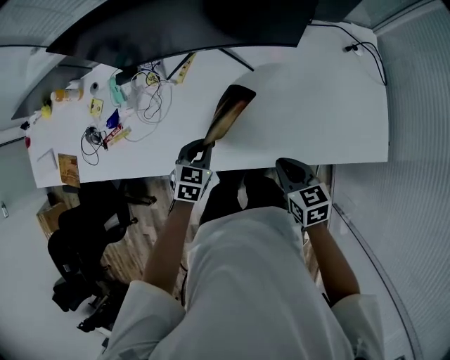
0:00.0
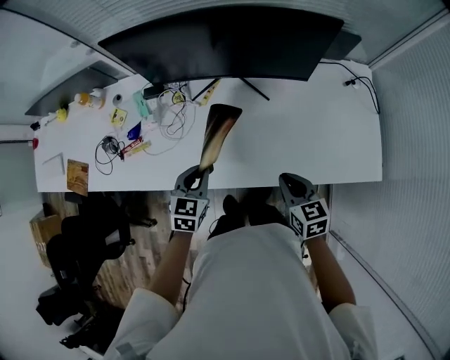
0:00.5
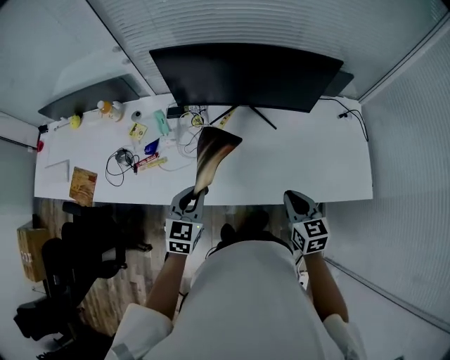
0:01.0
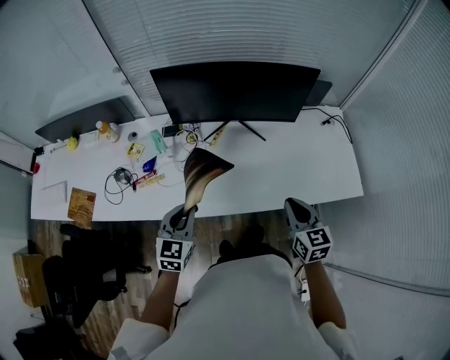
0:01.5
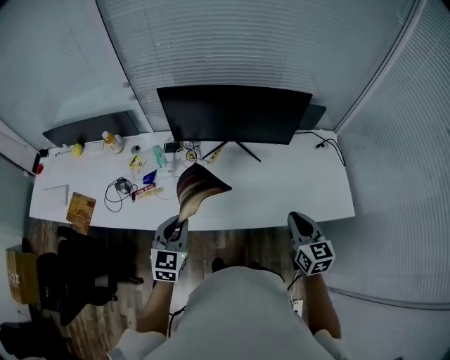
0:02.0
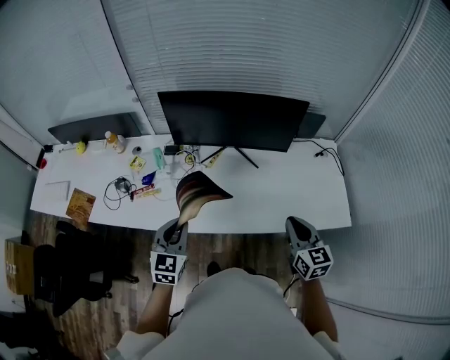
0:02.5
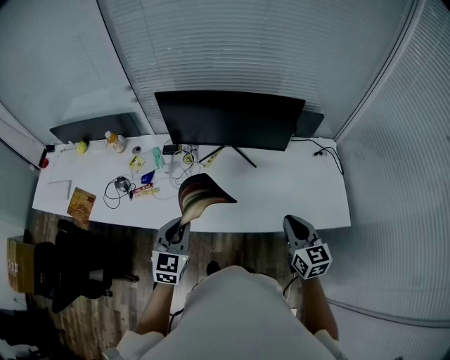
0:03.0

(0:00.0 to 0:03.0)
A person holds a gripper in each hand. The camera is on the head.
0:00.0 - 0:01.5: The right gripper heads upward and to the left, covering roughly 20 cm, and swivels about 30 degrees. Meanwhile the left gripper shifts about 30 cm upward, to the left and backward, and rotates roughly 30 degrees.
0:01.5 - 0:03.0: The right gripper goes about 5 cm to the right. The left gripper heads to the right and upward, covering some 10 cm.

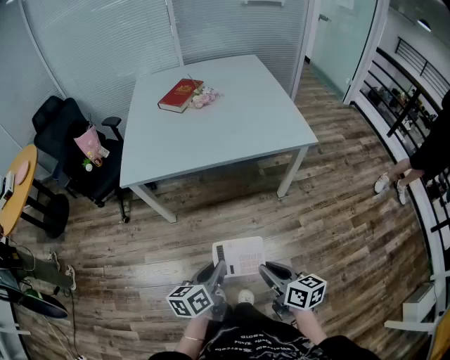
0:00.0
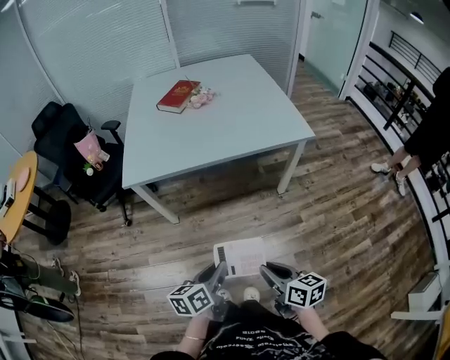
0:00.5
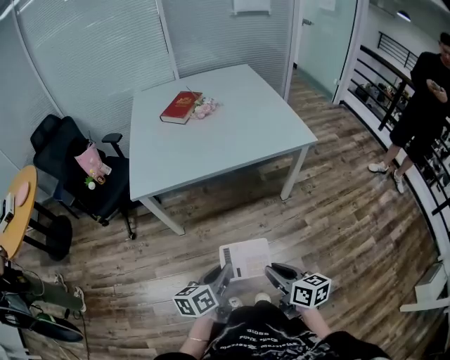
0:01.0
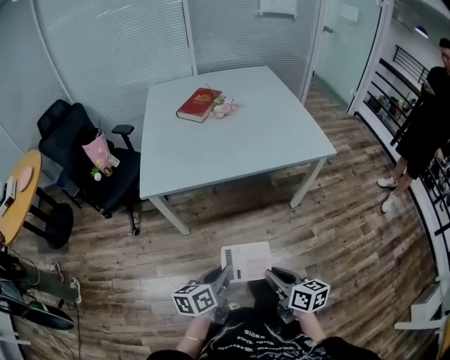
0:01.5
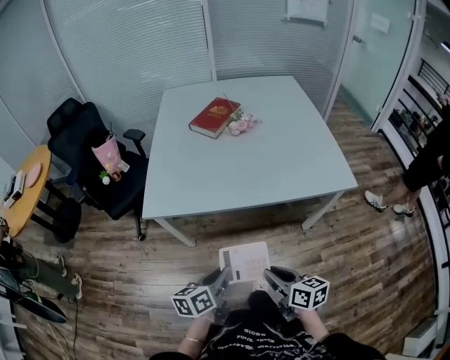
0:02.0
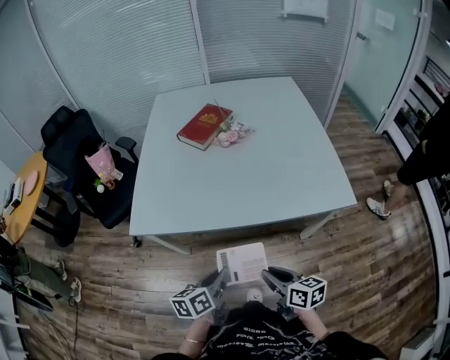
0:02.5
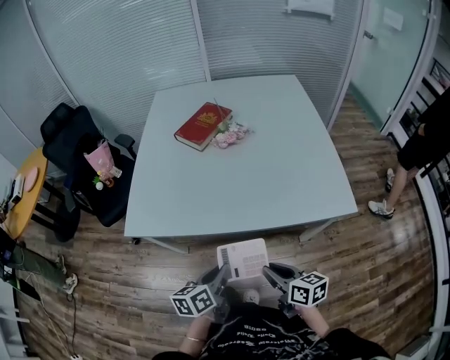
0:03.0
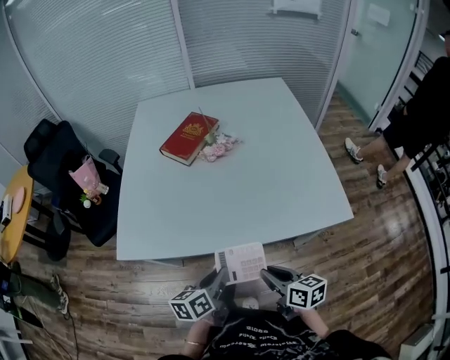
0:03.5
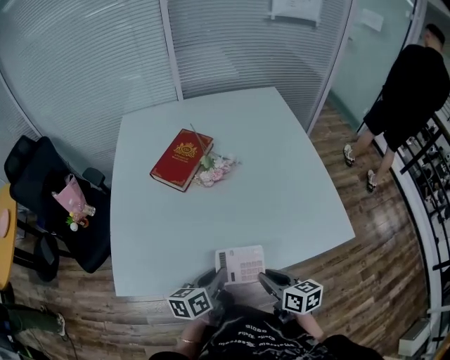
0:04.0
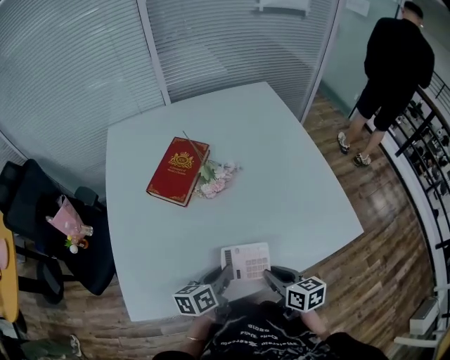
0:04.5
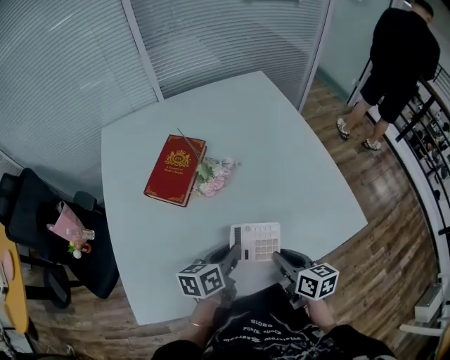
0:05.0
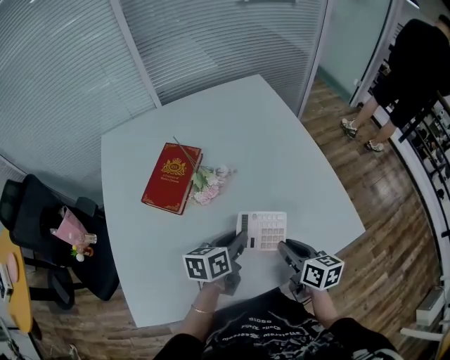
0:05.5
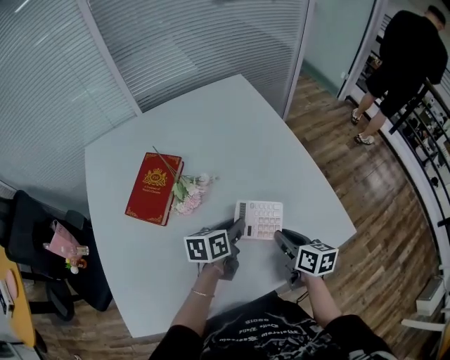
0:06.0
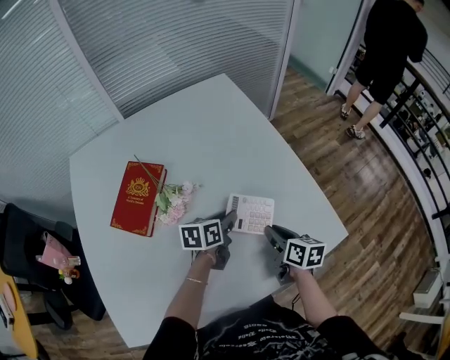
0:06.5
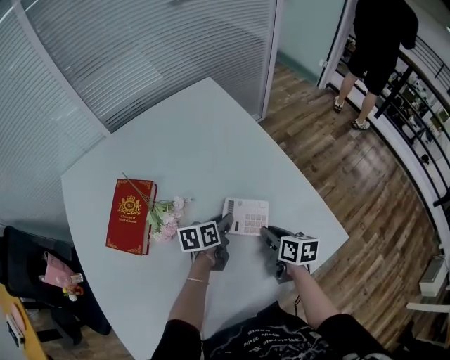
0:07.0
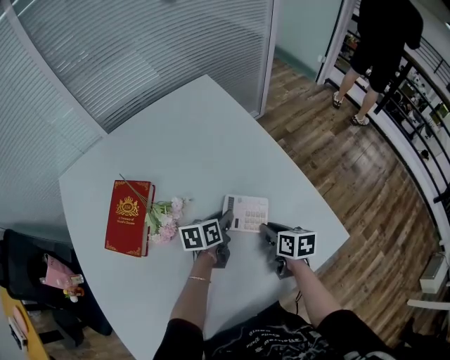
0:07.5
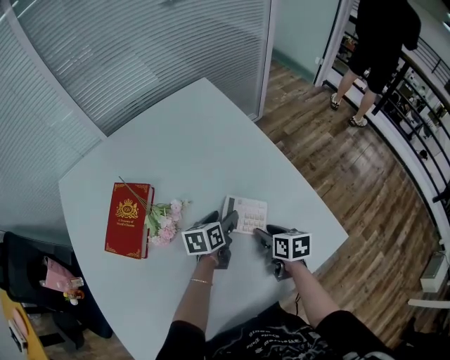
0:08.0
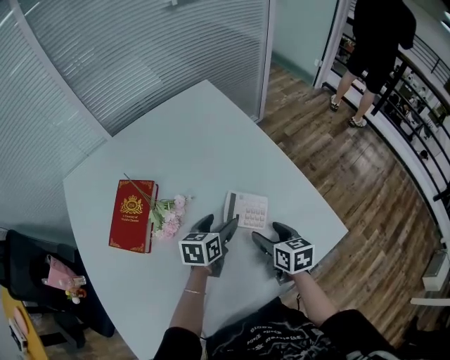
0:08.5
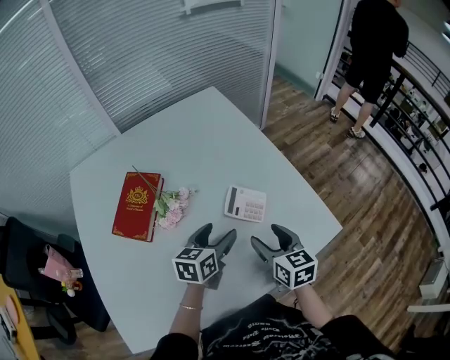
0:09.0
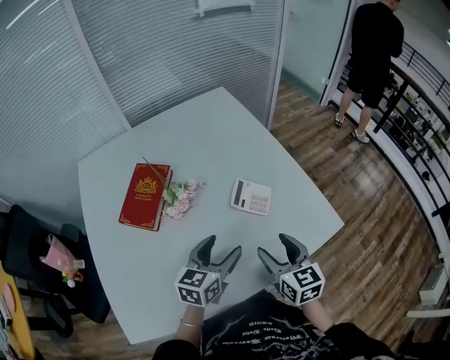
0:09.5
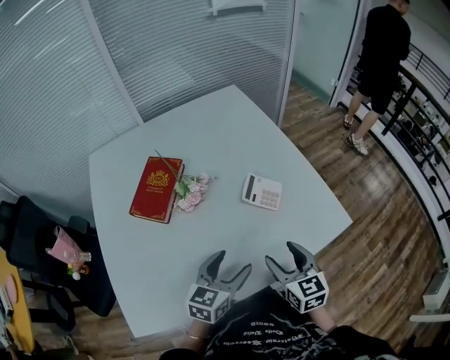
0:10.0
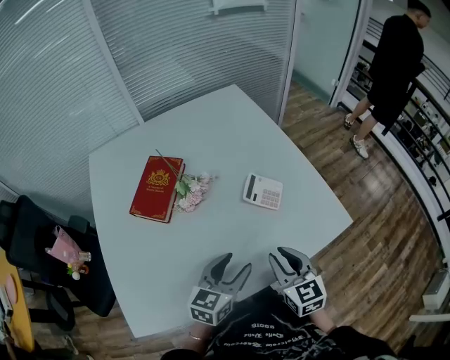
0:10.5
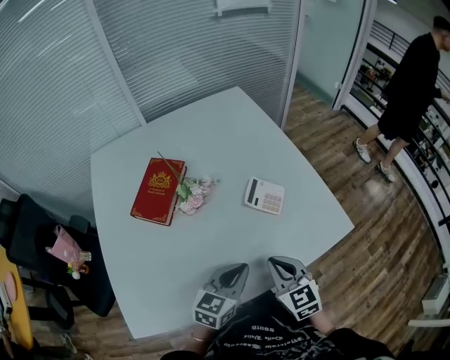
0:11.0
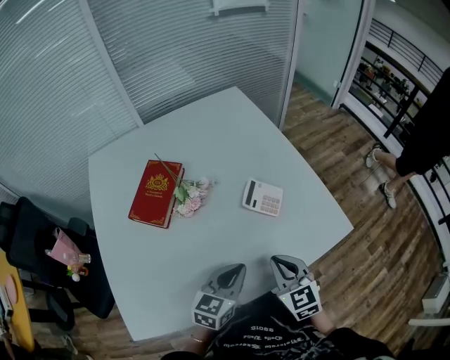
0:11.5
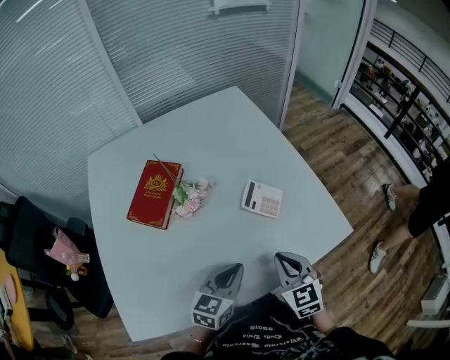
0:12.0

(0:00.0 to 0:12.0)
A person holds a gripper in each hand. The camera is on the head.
0:00.0 - 0:02.0: The left gripper travels forward and to the left by some 20 cm. The right gripper shifts some 20 cm forward.
0:02.0 - 0:04.0: Both grippers move forward, roughly 30 cm.
0:04.0 - 0:06.0: Both grippers move forward, some 25 cm. The right gripper swivels some 20 degrees. Meanwhile the left gripper swivels roughly 20 degrees.
0:06.0 - 0:08.0: Both grippers travel together forward and downward, some 15 cm. The left gripper opens up.
0:08.0 - 0:10.0: The two grippers go roughly 30 cm backward and upward. The right gripper changes its angle by about 40 degrees, while the left gripper rotates approximately 30 degrees.
0:10.0 - 0:12.0: The left gripper closes. The right gripper closes its fingers.

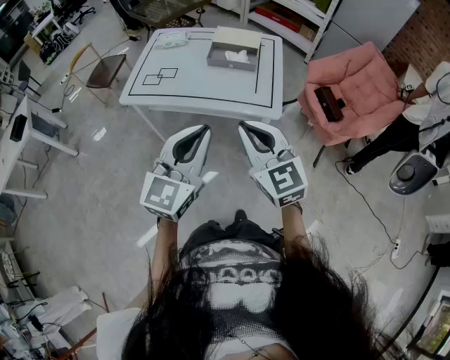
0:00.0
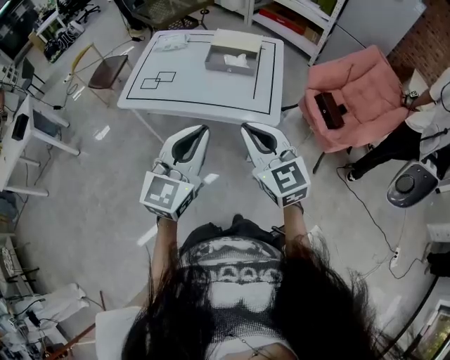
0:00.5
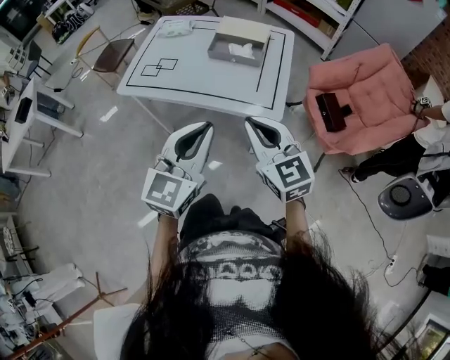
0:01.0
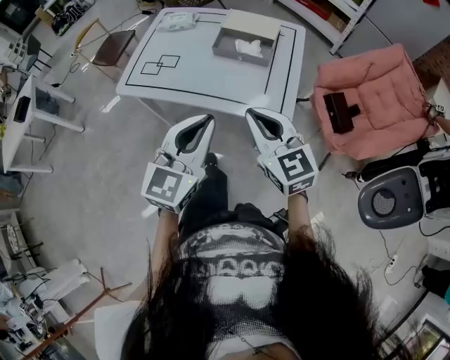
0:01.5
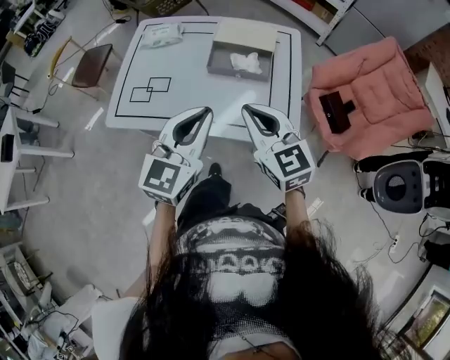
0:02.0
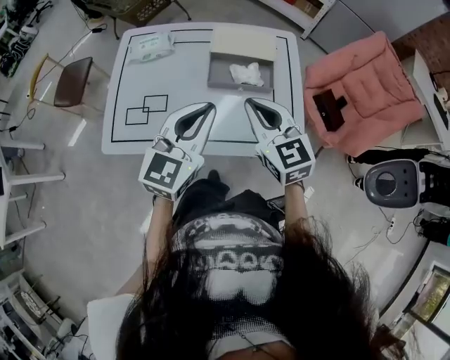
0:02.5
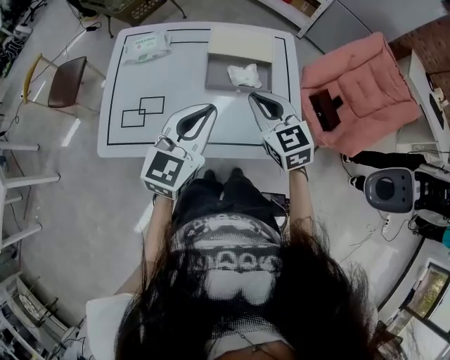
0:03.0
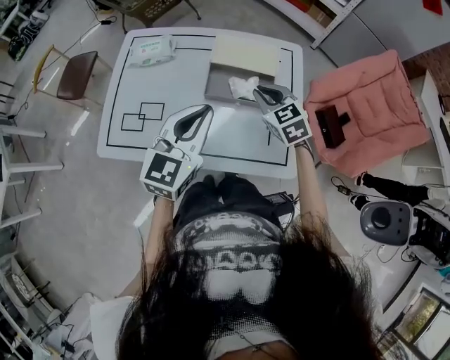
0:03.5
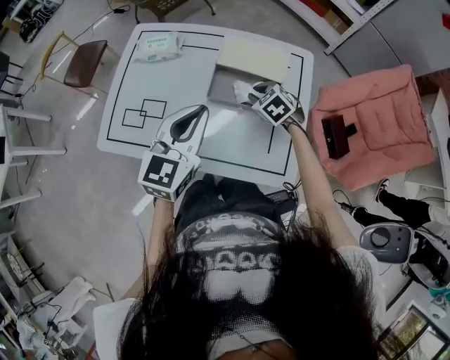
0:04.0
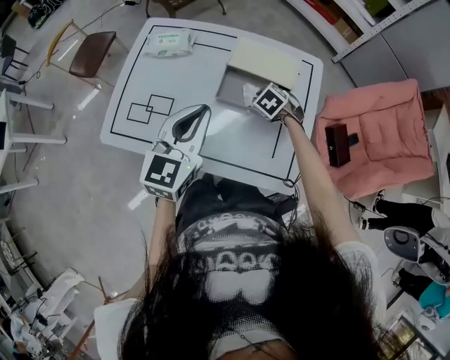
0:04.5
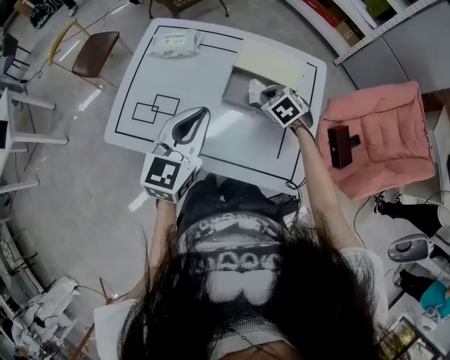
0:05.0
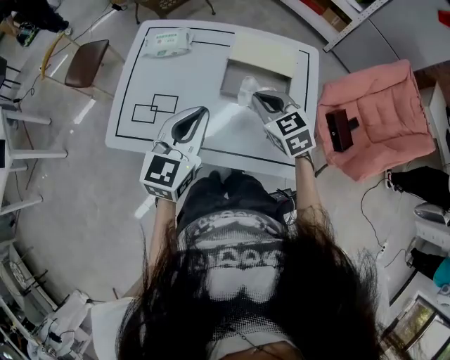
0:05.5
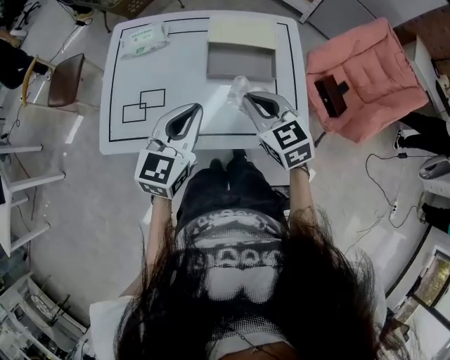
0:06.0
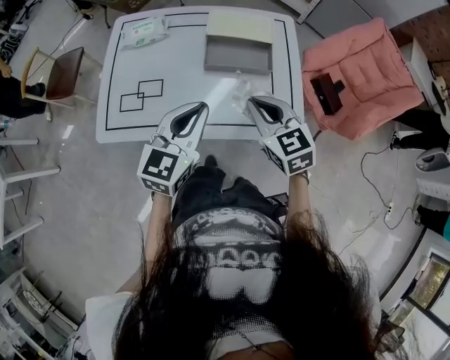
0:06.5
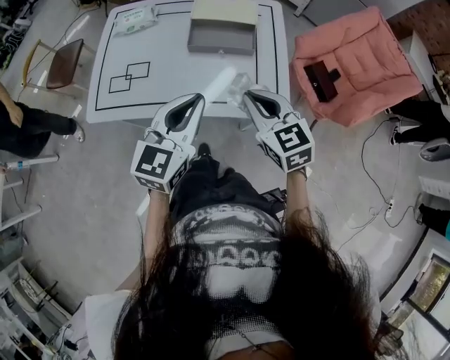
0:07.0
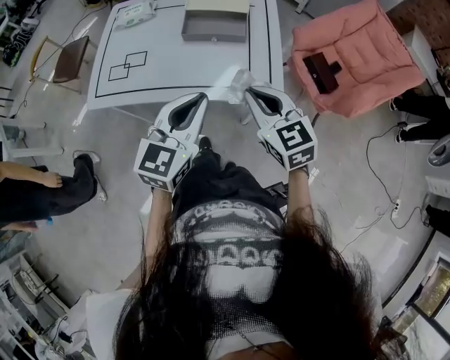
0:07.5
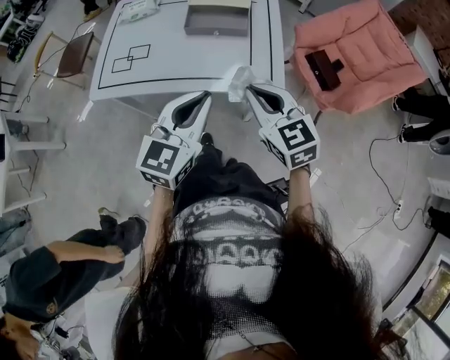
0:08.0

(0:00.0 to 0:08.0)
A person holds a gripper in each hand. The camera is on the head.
0:00.0 - 0:02.0: The two grippers go roughly 30 cm forward.
0:02.0 - 0:04.0: The left gripper is displaced forward by approximately 20 cm; the right gripper moves forward and downward, roughly 35 cm, and angles its fingers downward, by approximately 40 degrees.
0:04.0 - 0:06.0: The right gripper heads backward, upward and to the left, covering roughly 25 cm, and rotates about 30 degrees. The left gripper shifts some 10 cm to the left and backward.
0:06.0 - 0:08.0: The grippers both shift backward and to the right by some 25 cm.

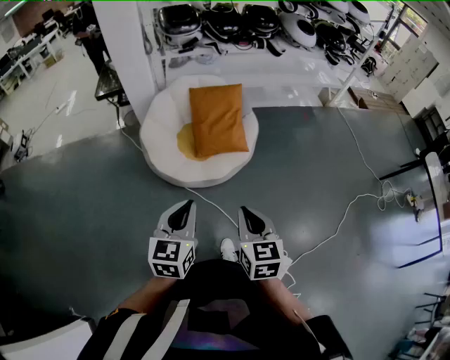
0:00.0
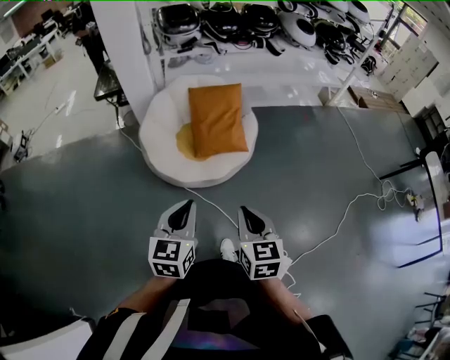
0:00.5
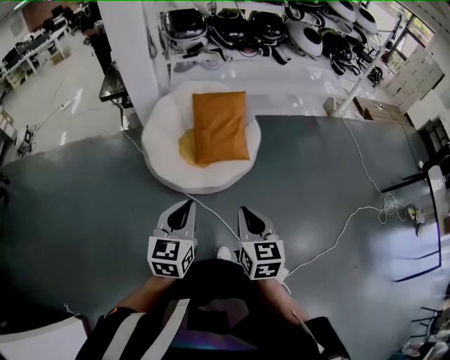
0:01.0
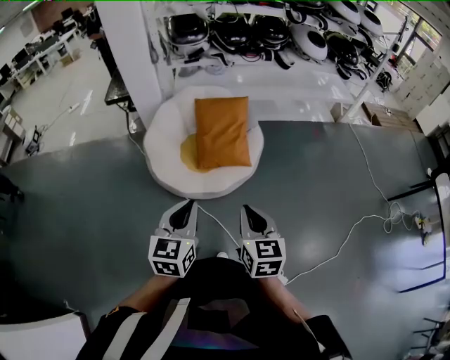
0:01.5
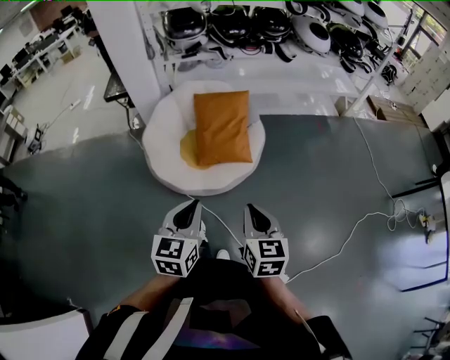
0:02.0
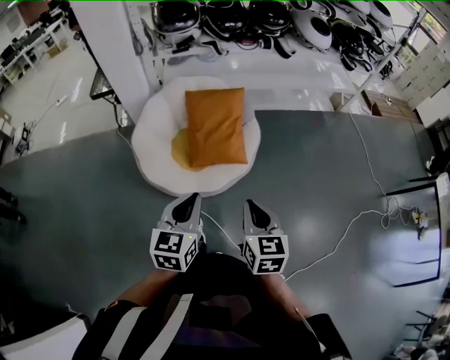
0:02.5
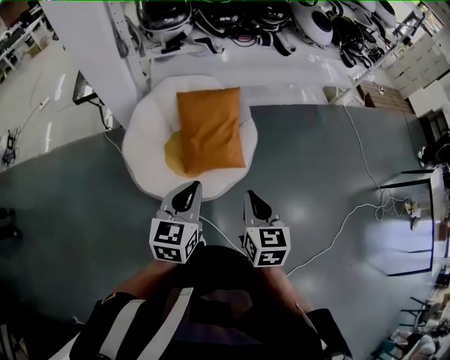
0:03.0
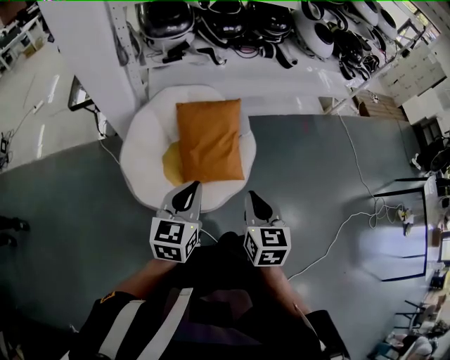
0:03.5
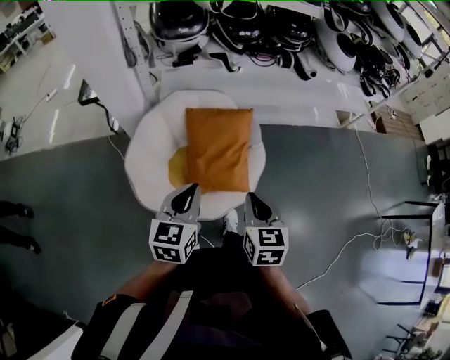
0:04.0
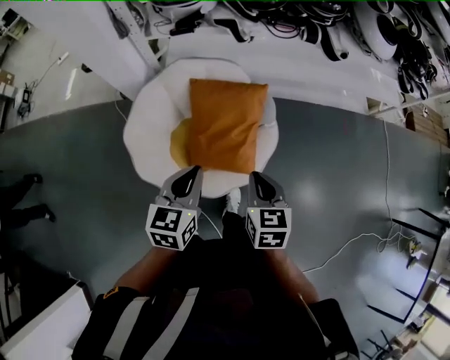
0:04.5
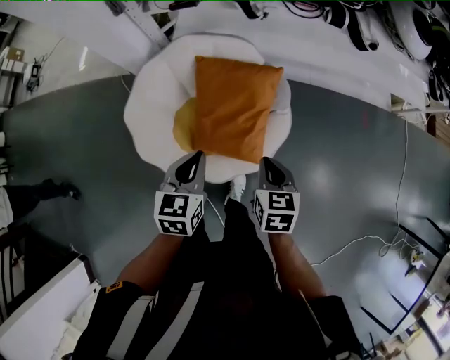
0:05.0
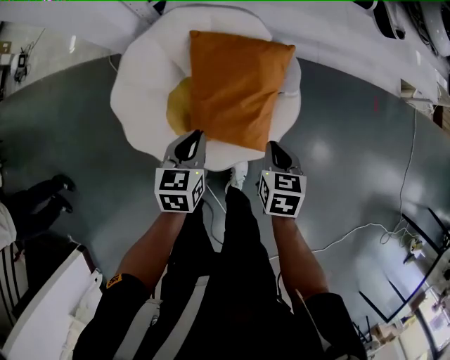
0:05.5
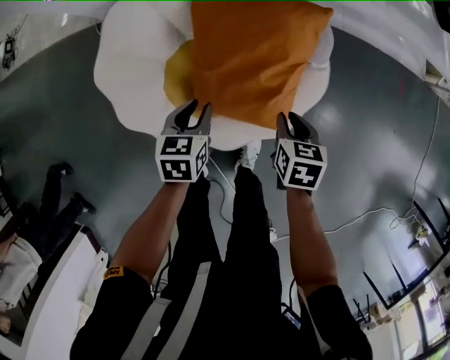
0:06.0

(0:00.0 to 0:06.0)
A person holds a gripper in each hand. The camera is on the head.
0:00.0 - 0:02.0: Both grippers travel together to the right and forward, some 15 cm.
0:02.0 - 0:04.0: The grippers both shift forward by roughly 35 cm.
0:04.0 - 0:06.0: The right gripper shifts roughly 50 cm downward and forward, and turns by roughly 30 degrees; the left gripper goes approximately 40 cm downward, swivels approximately 30 degrees, and opens up.
